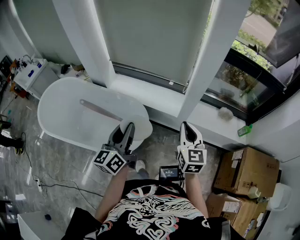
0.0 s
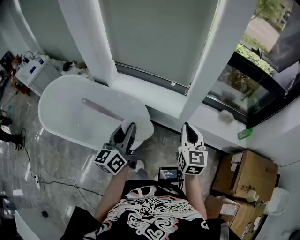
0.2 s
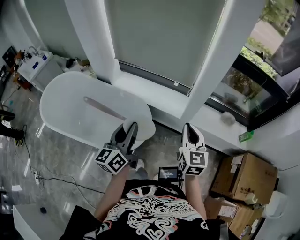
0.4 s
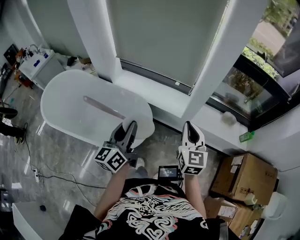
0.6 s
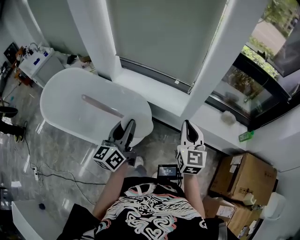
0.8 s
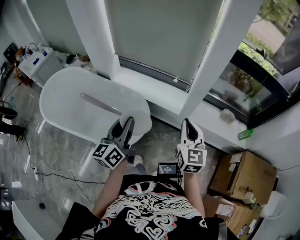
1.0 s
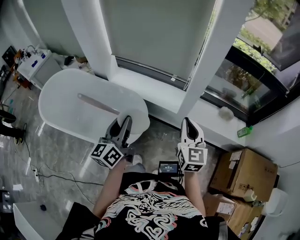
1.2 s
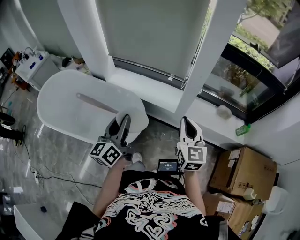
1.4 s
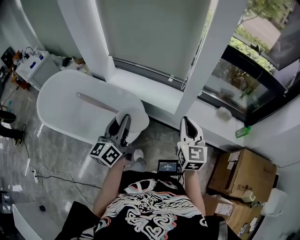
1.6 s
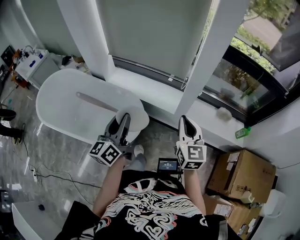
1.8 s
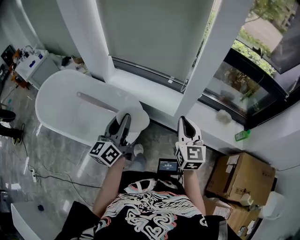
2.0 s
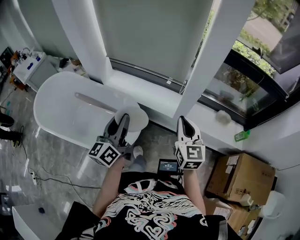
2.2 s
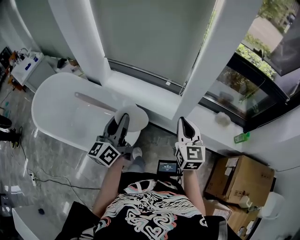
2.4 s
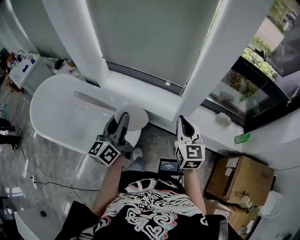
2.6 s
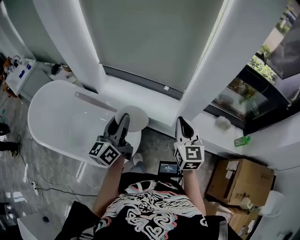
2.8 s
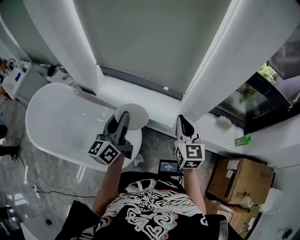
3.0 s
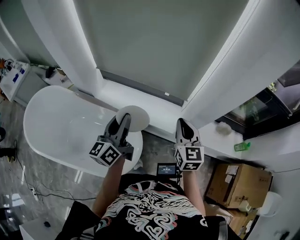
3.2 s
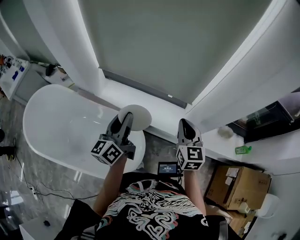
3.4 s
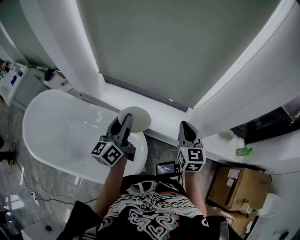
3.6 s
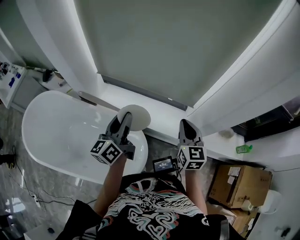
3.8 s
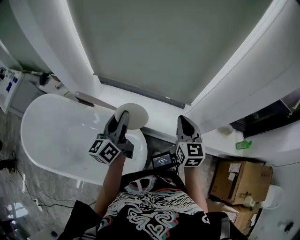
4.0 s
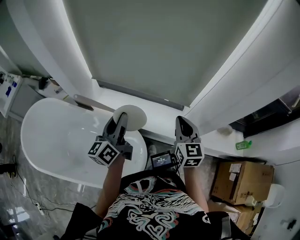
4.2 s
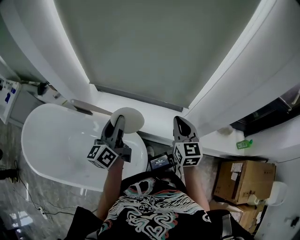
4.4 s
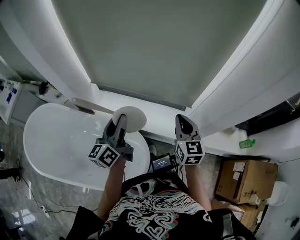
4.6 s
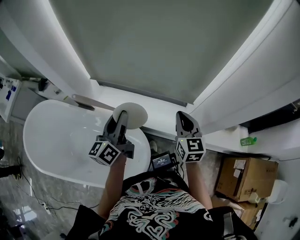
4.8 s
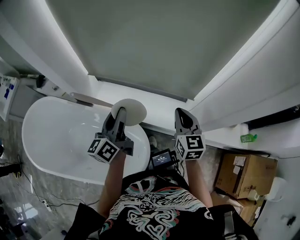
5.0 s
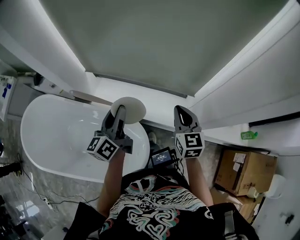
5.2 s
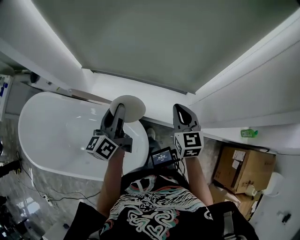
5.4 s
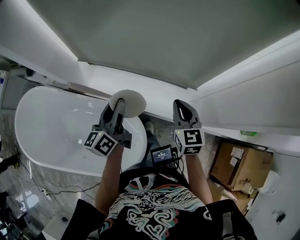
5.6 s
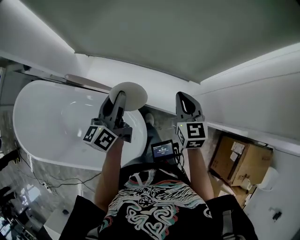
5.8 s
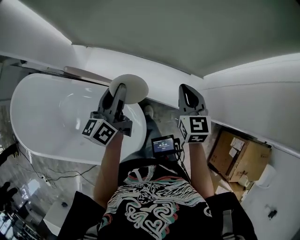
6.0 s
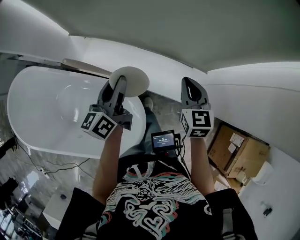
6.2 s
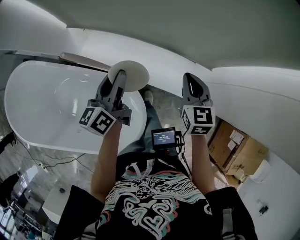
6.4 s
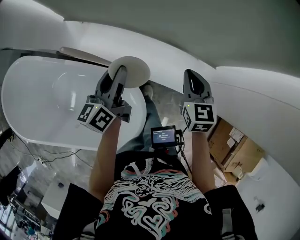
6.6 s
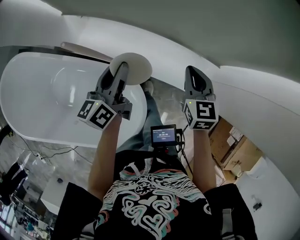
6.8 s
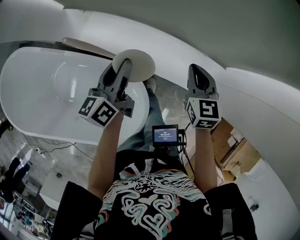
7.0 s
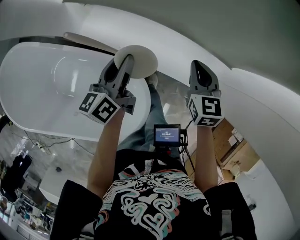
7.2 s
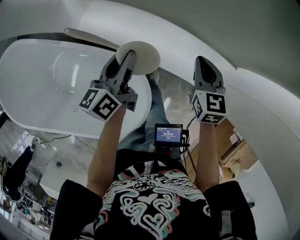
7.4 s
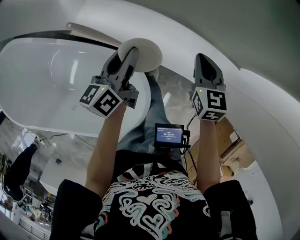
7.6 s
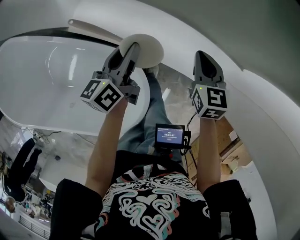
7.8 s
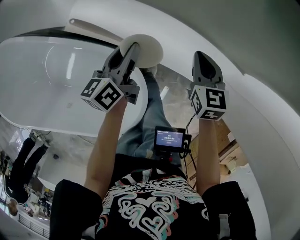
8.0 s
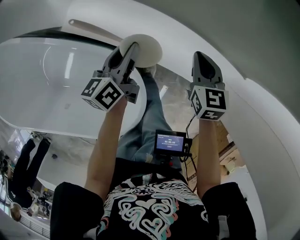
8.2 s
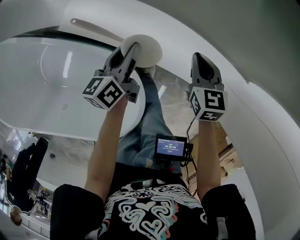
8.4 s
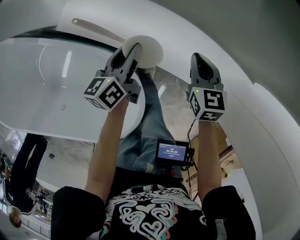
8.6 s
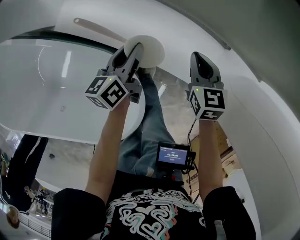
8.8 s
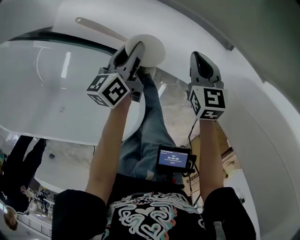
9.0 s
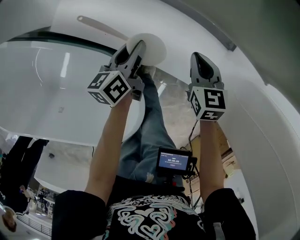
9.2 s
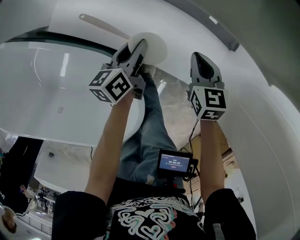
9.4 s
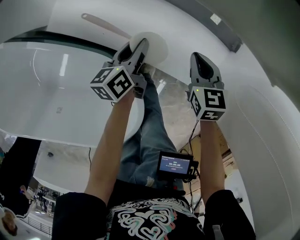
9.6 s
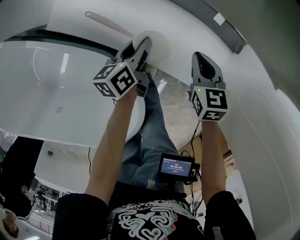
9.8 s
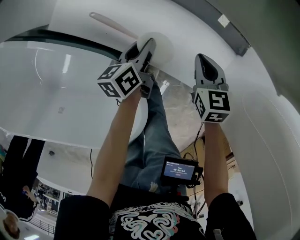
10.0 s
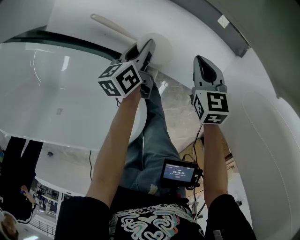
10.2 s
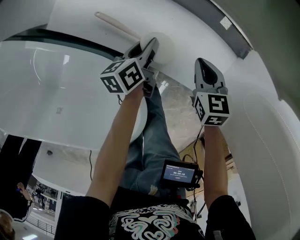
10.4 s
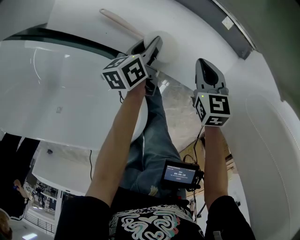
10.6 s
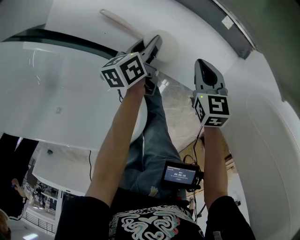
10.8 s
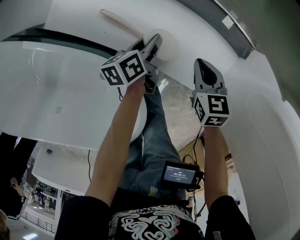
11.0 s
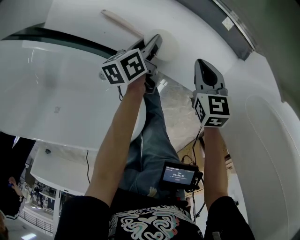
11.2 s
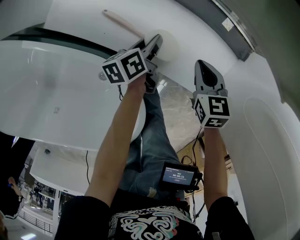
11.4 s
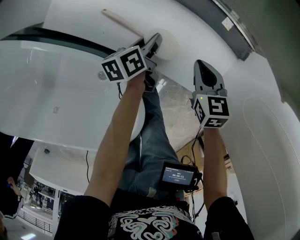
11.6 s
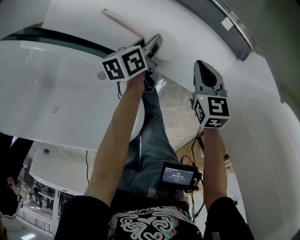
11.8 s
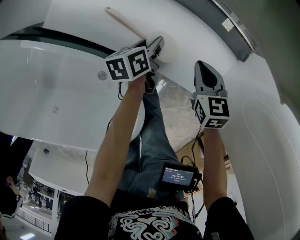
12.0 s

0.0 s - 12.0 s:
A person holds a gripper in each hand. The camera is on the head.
0.0 s - 1.6 s: The grippers stay close to where they were, moving slightly.
1.6 s - 3.0 s: Both grippers move forward, about 20 cm.
3.0 s - 4.4 s: The grippers both shift forward and to the left by some 15 cm.
4.4 s - 6.0 s: Both grippers travel together downward and forward, about 15 cm.
6.0 s - 7.6 s: The two grippers go about 15 cm downward.
7.6 s - 9.0 s: The two grippers go approximately 15 cm downward.
9.0 s - 10.4 s: The grippers both shift downward by about 10 cm.
10.4 s - 12.0 s: The grippers make only small movements.

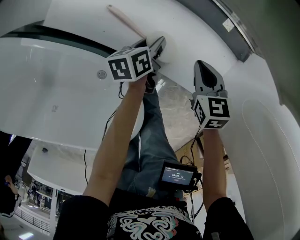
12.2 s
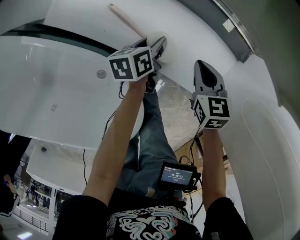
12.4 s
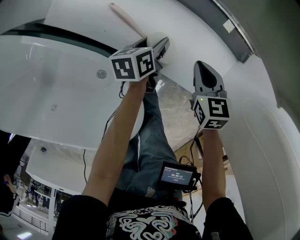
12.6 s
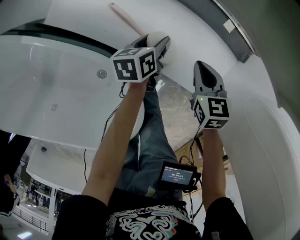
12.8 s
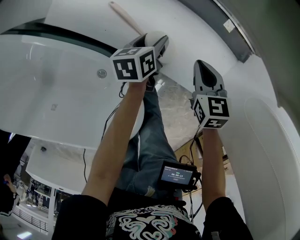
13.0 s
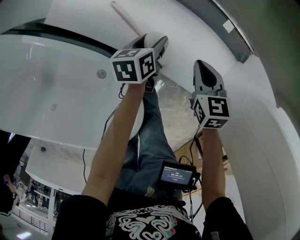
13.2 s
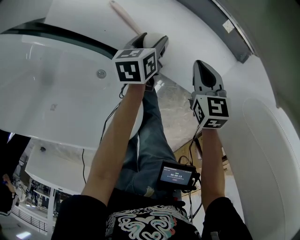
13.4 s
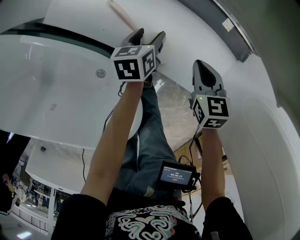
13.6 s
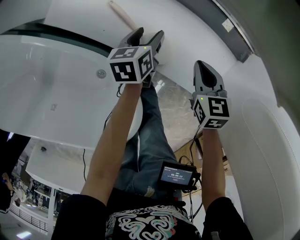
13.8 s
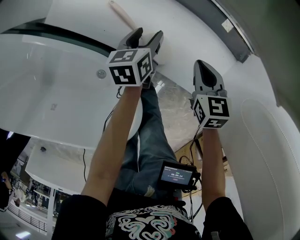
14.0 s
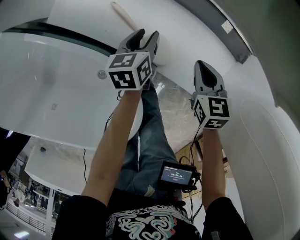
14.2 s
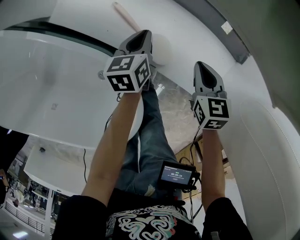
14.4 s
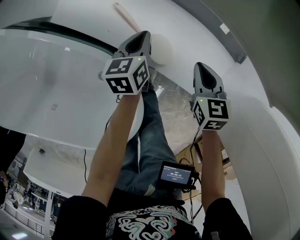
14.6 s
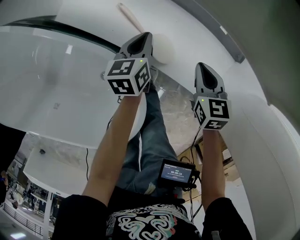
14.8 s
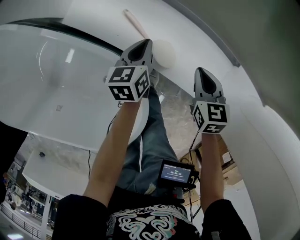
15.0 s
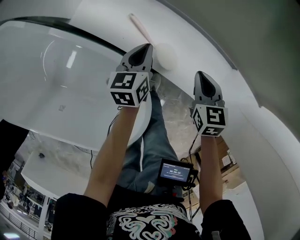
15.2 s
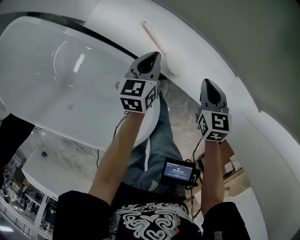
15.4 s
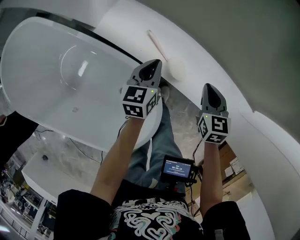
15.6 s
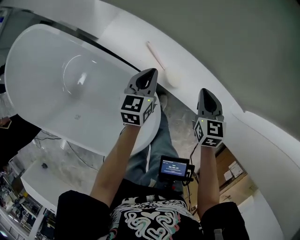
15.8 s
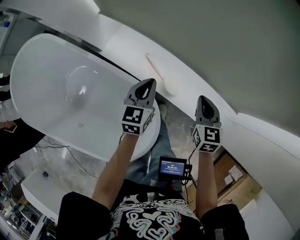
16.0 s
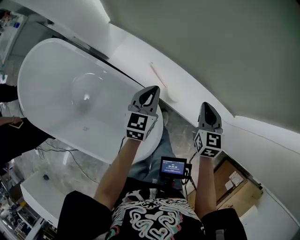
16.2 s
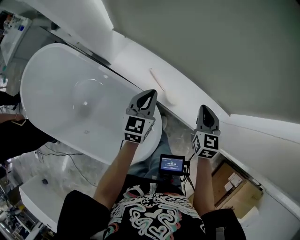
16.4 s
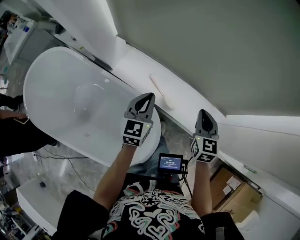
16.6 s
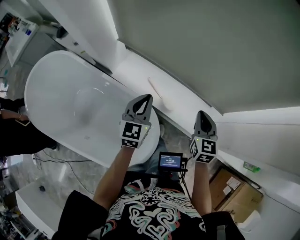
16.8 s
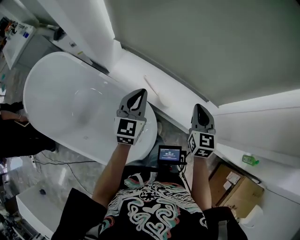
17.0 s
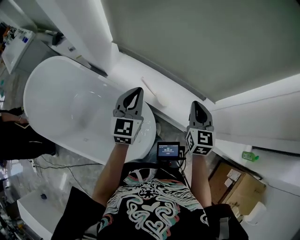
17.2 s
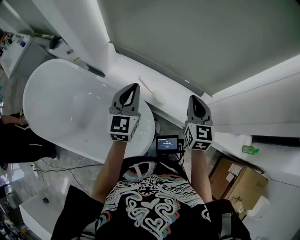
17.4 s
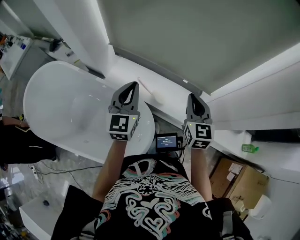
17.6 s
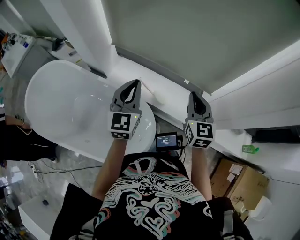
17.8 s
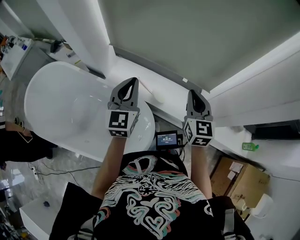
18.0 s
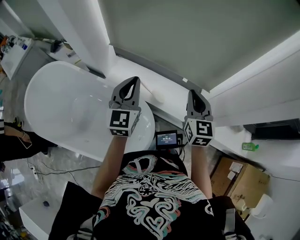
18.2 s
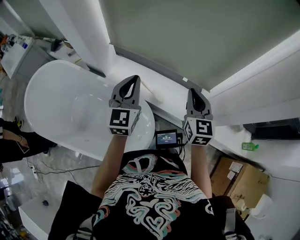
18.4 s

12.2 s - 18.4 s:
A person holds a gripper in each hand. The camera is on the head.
12.2 s - 13.8 s: The left gripper opens up.
13.8 s - 15.4 s: The right gripper travels upward by roughly 10 cm; the left gripper travels upward and to the left by roughly 15 cm, and closes up.
15.4 s - 16.8 s: Both grippers move upward, about 30 cm. The left gripper changes its angle by about 30 degrees. The right gripper swivels some 20 degrees.
16.8 s - 18.4 s: Both grippers travel together upward and backward, approximately 15 cm.

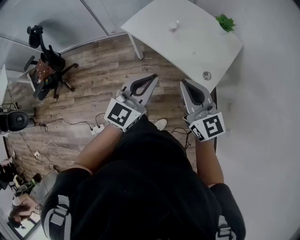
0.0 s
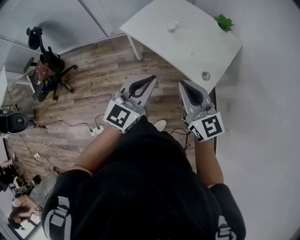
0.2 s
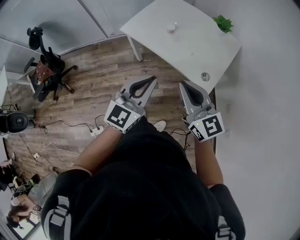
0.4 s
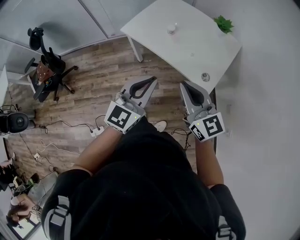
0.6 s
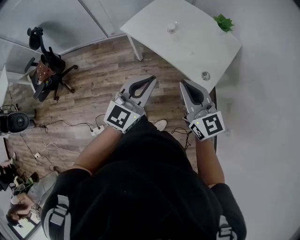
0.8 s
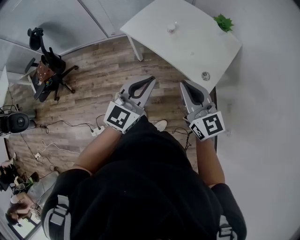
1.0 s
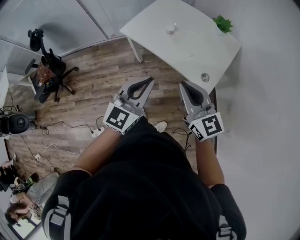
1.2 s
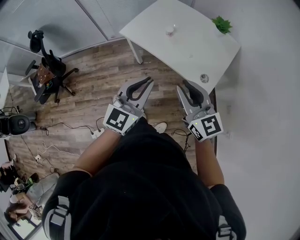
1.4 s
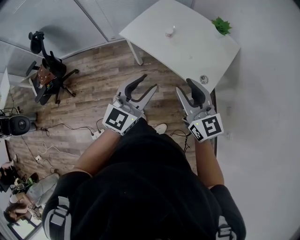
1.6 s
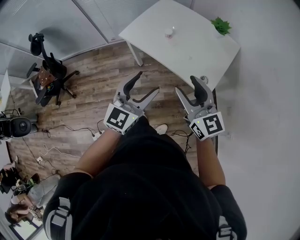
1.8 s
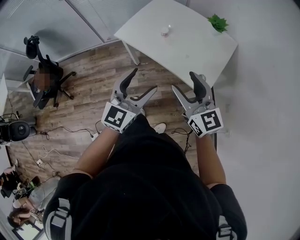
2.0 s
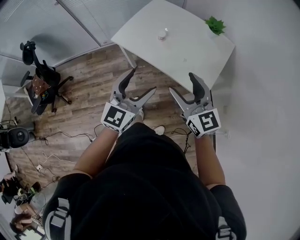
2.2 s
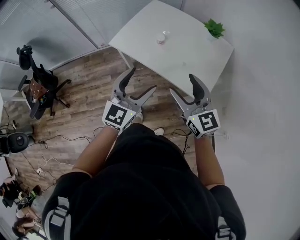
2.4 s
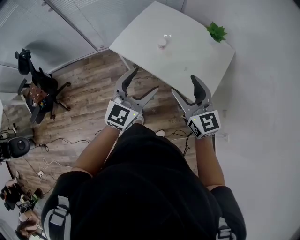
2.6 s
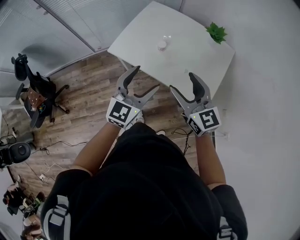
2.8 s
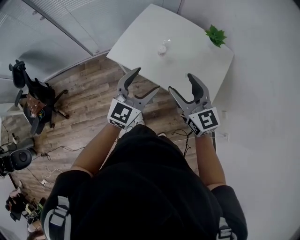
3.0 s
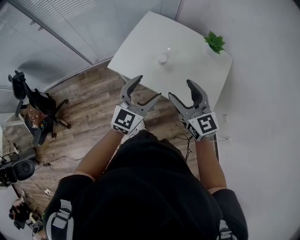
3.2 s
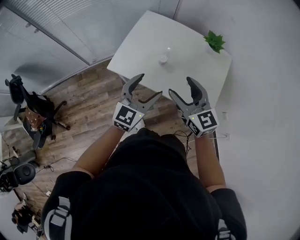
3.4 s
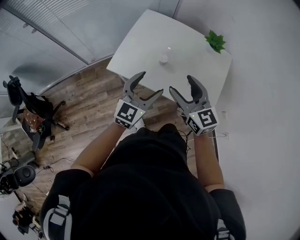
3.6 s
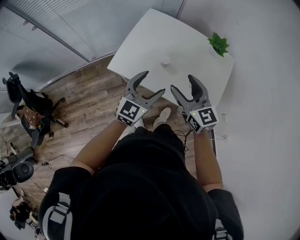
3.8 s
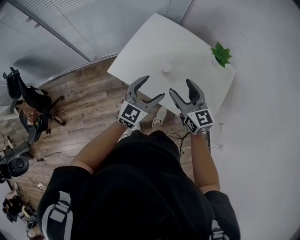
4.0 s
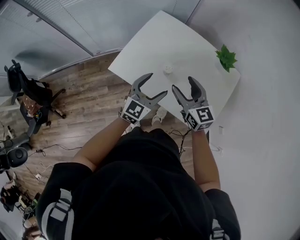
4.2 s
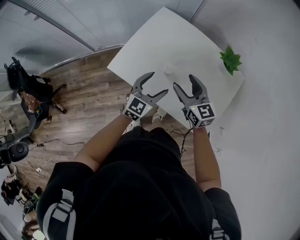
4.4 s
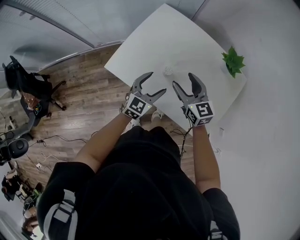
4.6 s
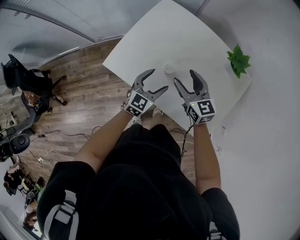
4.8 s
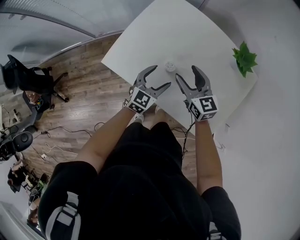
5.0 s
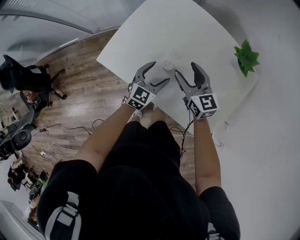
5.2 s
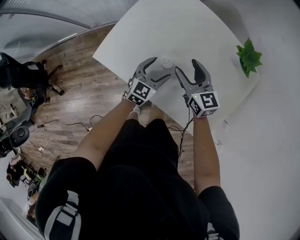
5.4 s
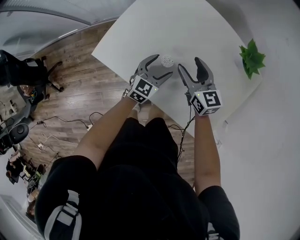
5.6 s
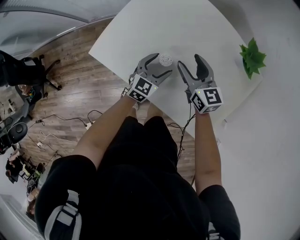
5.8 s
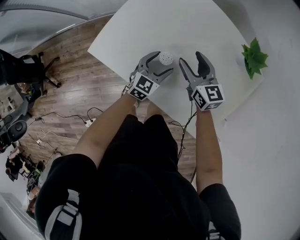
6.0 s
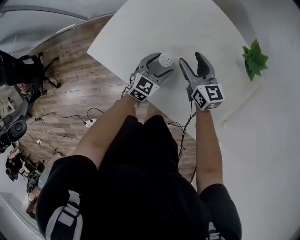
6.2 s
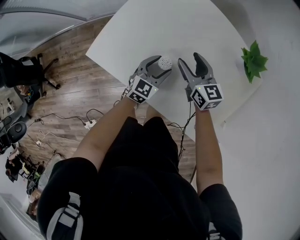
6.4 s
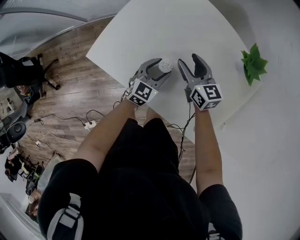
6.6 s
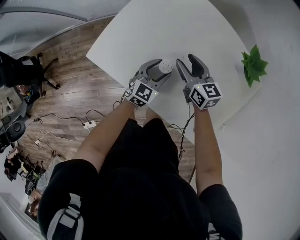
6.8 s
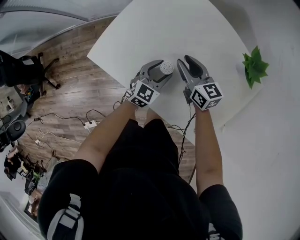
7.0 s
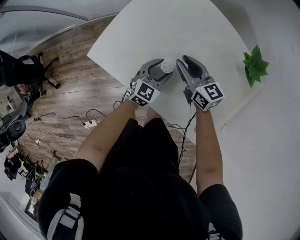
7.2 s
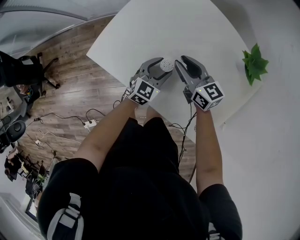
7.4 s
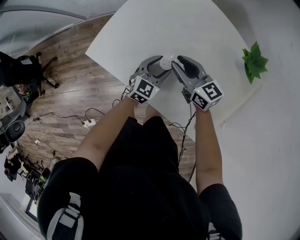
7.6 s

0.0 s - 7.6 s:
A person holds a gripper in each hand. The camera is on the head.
0.0 s - 1.6 s: The left gripper opens its fingers, while the right gripper opens.
1.6 s - 3.0 s: Both grippers travel together forward, about 20 cm. The left gripper opens, while the right gripper opens up.
3.0 s - 4.6 s: The right gripper moves forward and downward, roughly 30 cm, while the left gripper is displaced downward and forward by some 30 cm.
4.6 s - 6.0 s: The two grippers go roughly 15 cm downward and forward.
6.0 s - 7.6 s: The right gripper closes its fingers.
